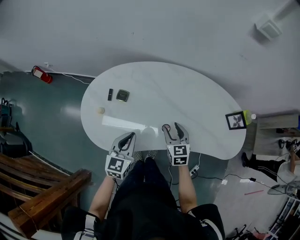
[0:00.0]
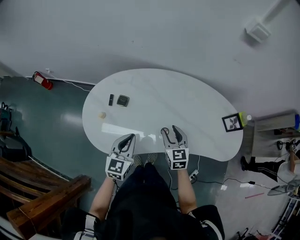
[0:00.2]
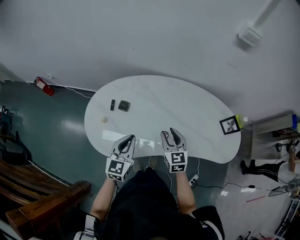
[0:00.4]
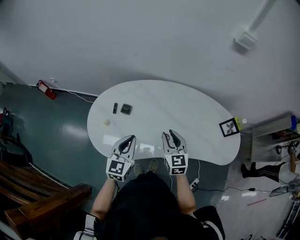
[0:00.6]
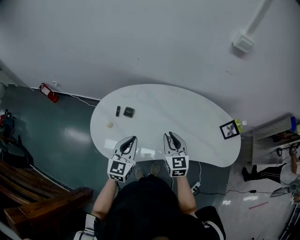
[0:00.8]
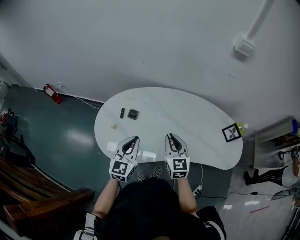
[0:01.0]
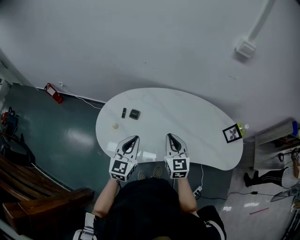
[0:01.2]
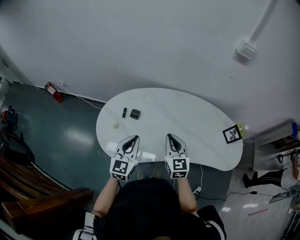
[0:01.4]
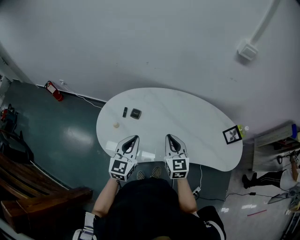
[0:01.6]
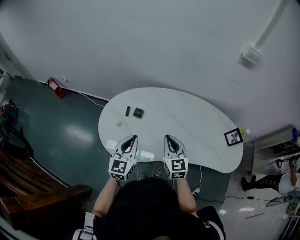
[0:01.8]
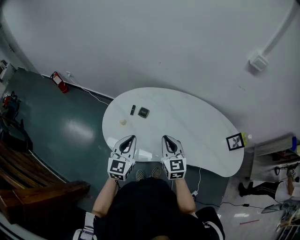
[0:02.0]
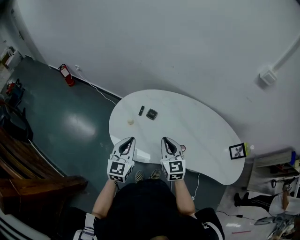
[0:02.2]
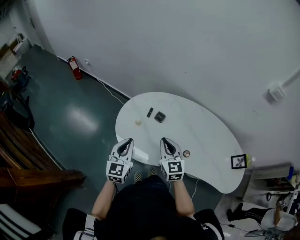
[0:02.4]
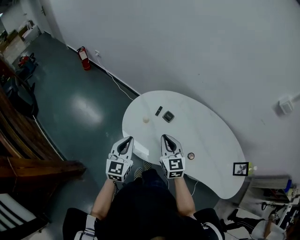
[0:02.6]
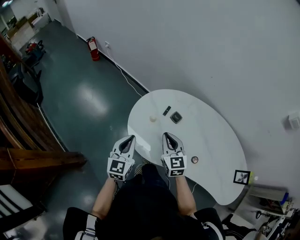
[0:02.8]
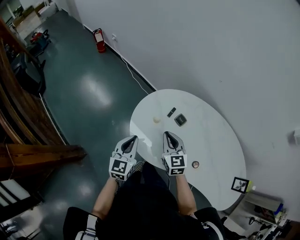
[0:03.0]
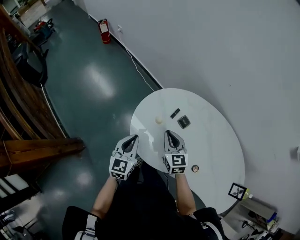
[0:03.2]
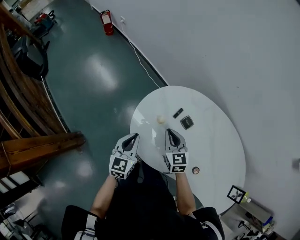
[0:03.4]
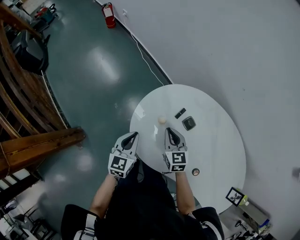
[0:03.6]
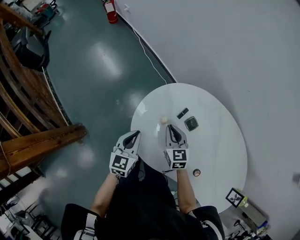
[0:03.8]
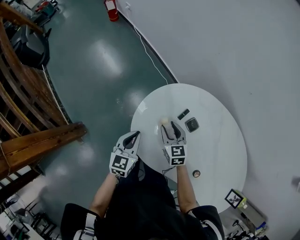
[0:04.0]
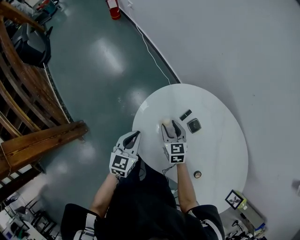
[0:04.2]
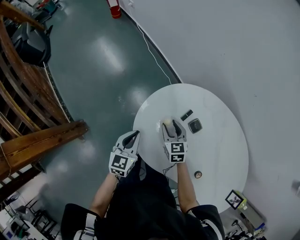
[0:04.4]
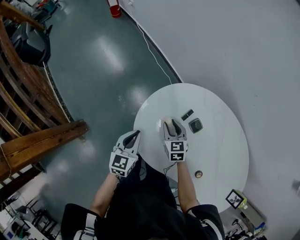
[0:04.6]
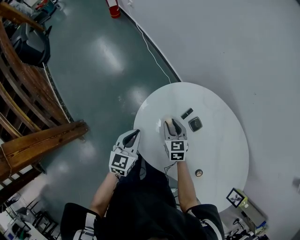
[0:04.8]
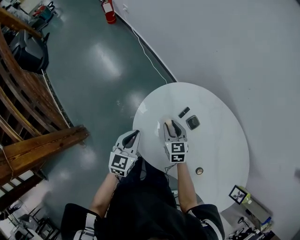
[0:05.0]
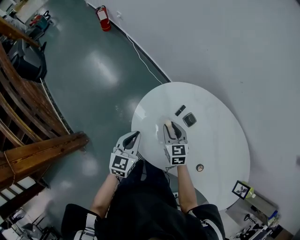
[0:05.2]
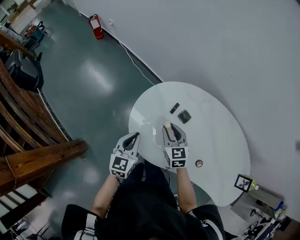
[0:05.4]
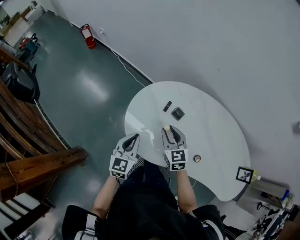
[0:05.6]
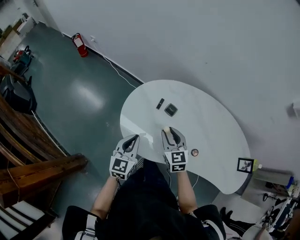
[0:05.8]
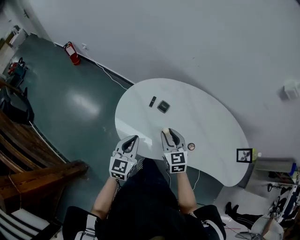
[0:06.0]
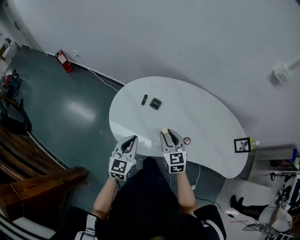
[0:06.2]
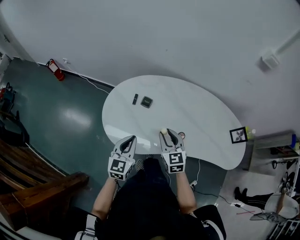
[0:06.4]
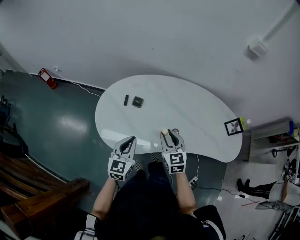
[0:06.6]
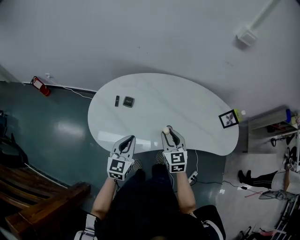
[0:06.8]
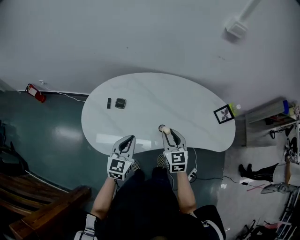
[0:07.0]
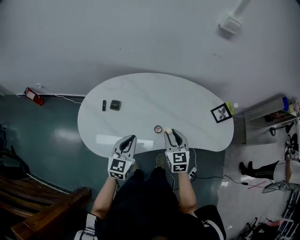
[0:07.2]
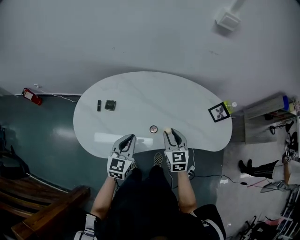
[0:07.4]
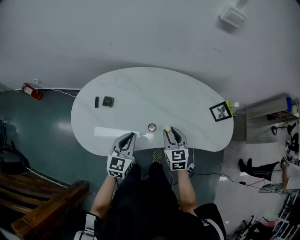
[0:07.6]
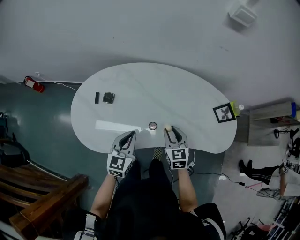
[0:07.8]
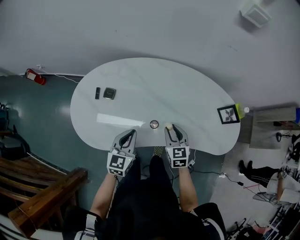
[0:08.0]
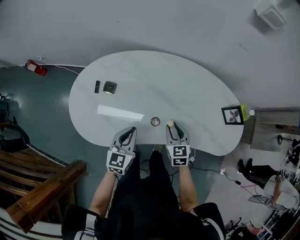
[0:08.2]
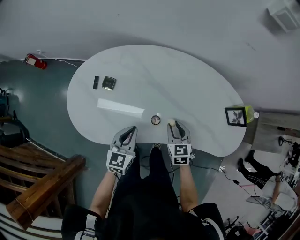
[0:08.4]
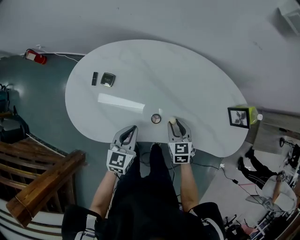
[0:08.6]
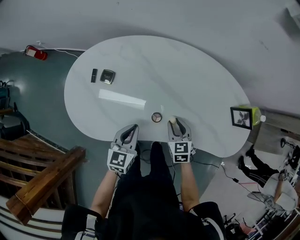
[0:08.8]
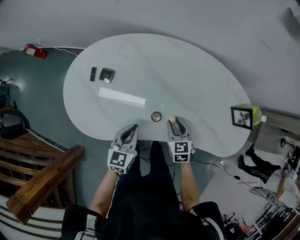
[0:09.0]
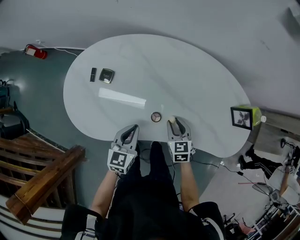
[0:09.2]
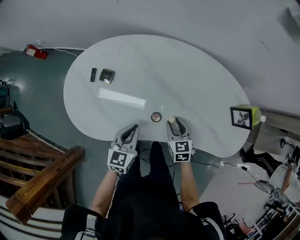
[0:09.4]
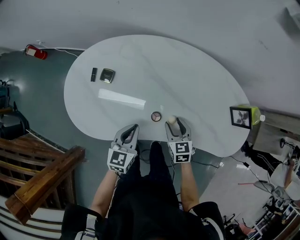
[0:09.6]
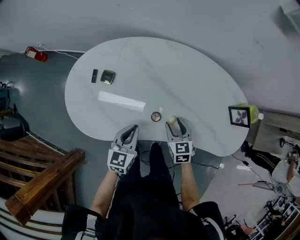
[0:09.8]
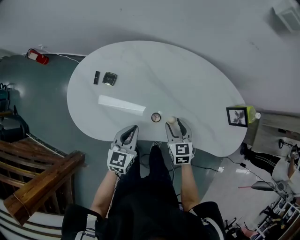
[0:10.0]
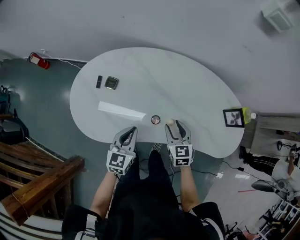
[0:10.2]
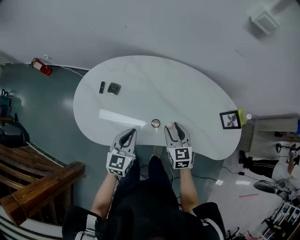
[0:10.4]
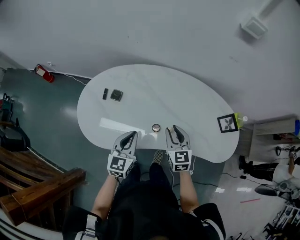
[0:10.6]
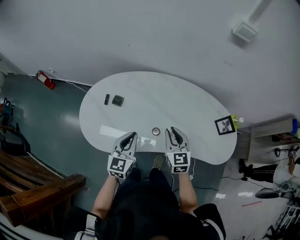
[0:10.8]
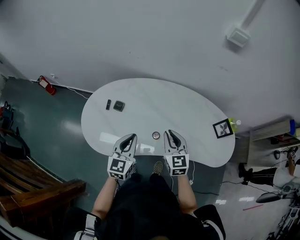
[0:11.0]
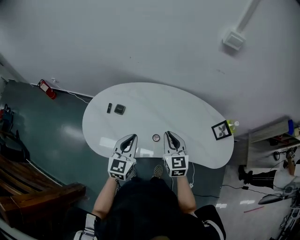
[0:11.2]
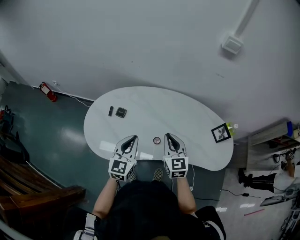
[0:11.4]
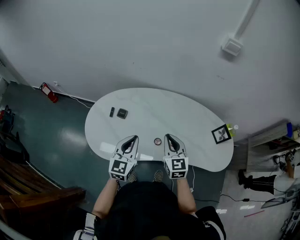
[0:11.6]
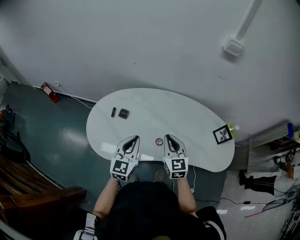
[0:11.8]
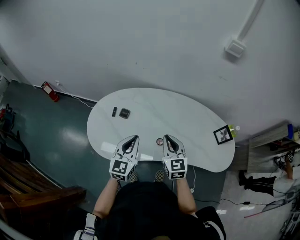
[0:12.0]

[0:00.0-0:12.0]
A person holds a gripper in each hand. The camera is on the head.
0:00.0 to 0:01.6: The left gripper heads upward, covering approximately 10 cm; the right gripper travels upward and to the left by approximately 15 cm, and closes.
0:01.6 to 0:03.0: The right gripper moves about 30 cm, and changes its angle by roughly 30 degrees; the left gripper moves some 25 cm, and turns by about 30 degrees.
0:03.0 to 0:04.4: The grippers both shift downward and forward by about 20 cm. The right gripper opens up.
0:04.4 to 0:06.0: Both grippers move upward, backward and to the right, some 25 cm. The right gripper turns by about 30 degrees. The left gripper rotates some 30 degrees.
0:06.0 to 0:07.6: The right gripper ends up about 30 cm from where it was, and turns by some 30 degrees, while the left gripper ends up about 25 cm from where it was, and changes its angle by approximately 20 degrees.
0:07.6 to 0:09.0: Both grippers move downward, some 15 cm.
0:09.0 to 0:10.4: The two grippers go about 10 cm upward.
0:10.4 to 0:12.0: The left gripper heads upward, covering roughly 10 cm, while the right gripper is displaced upward and to the left by some 15 cm, and closes up.

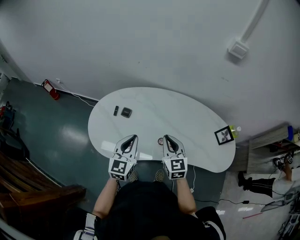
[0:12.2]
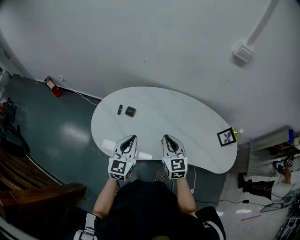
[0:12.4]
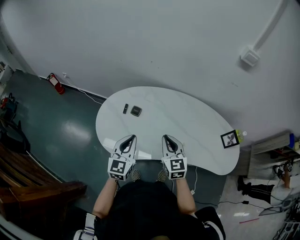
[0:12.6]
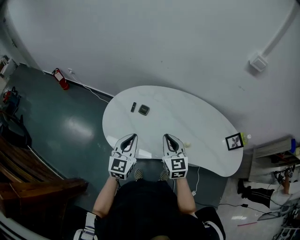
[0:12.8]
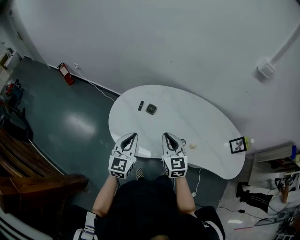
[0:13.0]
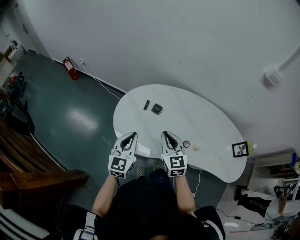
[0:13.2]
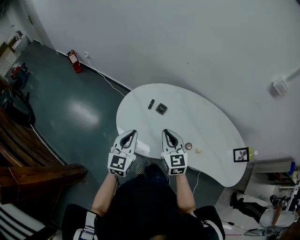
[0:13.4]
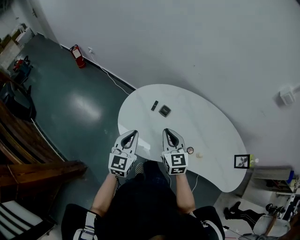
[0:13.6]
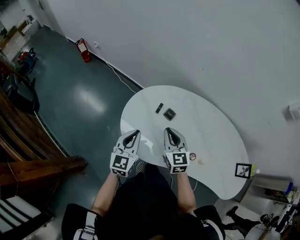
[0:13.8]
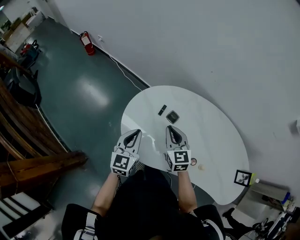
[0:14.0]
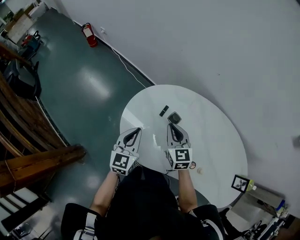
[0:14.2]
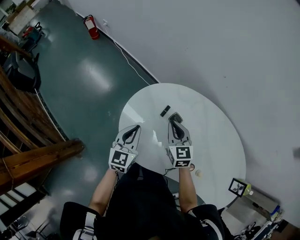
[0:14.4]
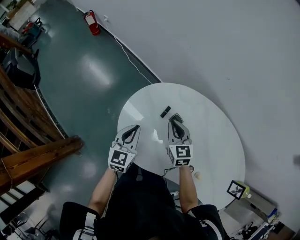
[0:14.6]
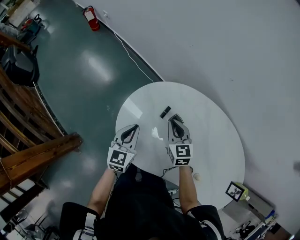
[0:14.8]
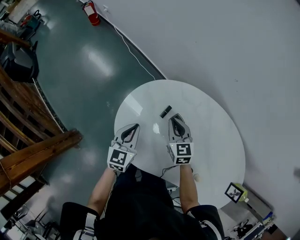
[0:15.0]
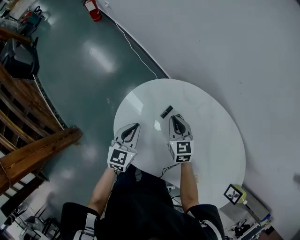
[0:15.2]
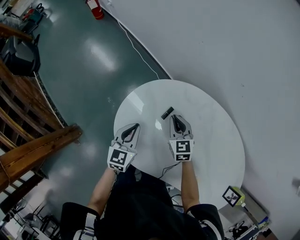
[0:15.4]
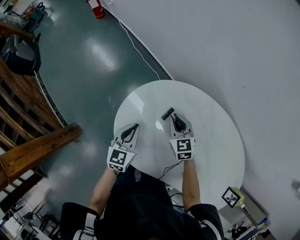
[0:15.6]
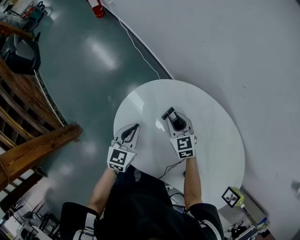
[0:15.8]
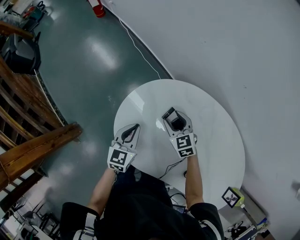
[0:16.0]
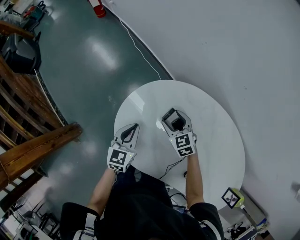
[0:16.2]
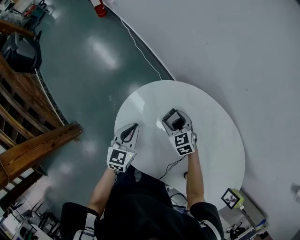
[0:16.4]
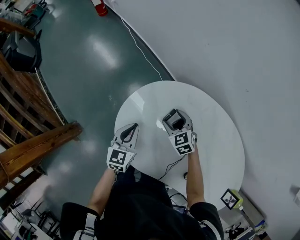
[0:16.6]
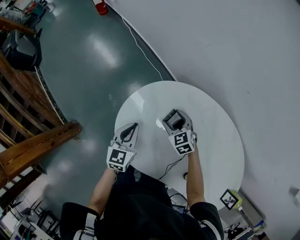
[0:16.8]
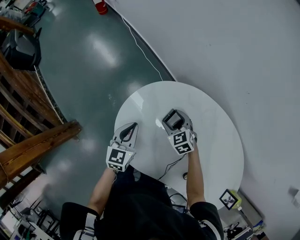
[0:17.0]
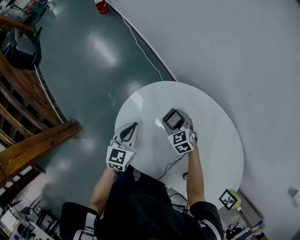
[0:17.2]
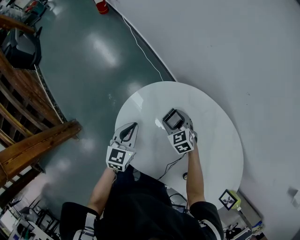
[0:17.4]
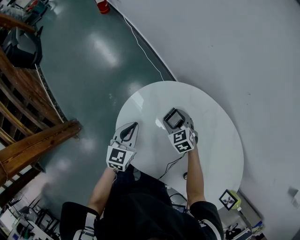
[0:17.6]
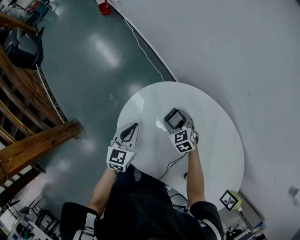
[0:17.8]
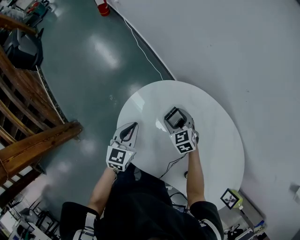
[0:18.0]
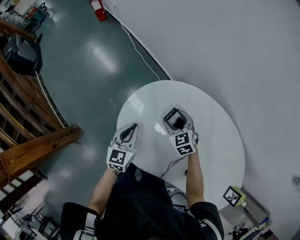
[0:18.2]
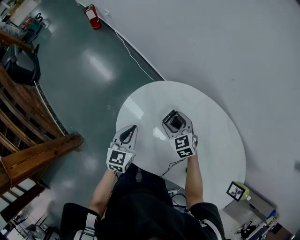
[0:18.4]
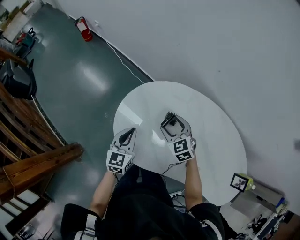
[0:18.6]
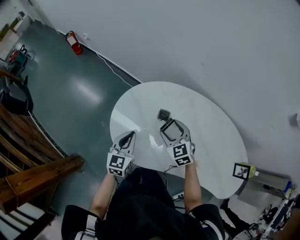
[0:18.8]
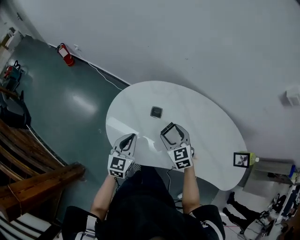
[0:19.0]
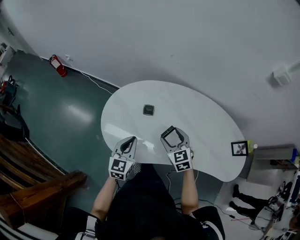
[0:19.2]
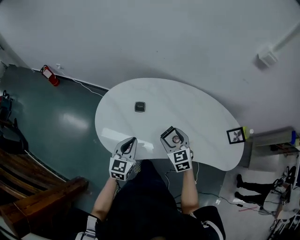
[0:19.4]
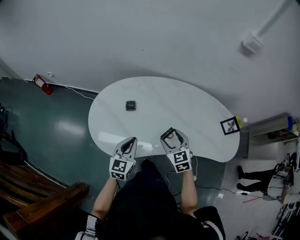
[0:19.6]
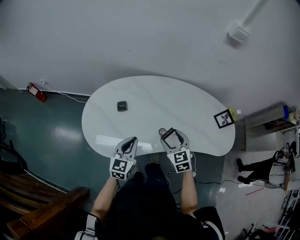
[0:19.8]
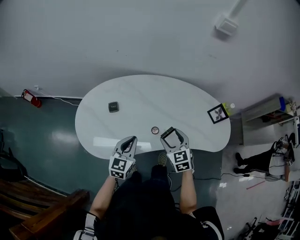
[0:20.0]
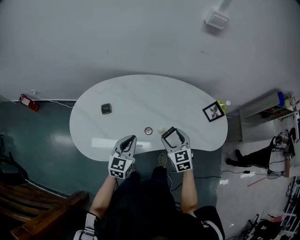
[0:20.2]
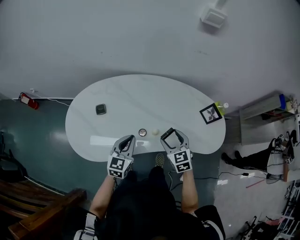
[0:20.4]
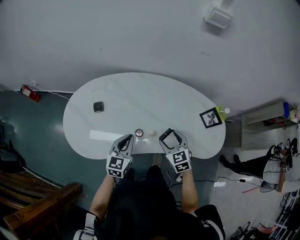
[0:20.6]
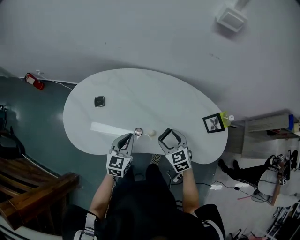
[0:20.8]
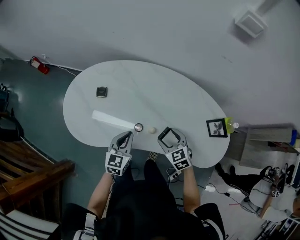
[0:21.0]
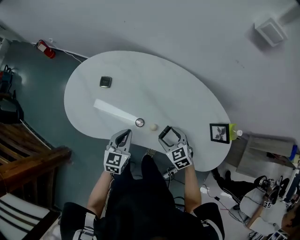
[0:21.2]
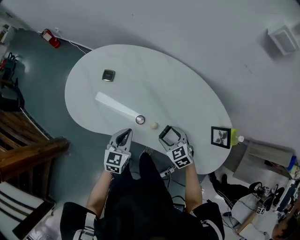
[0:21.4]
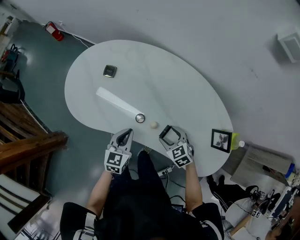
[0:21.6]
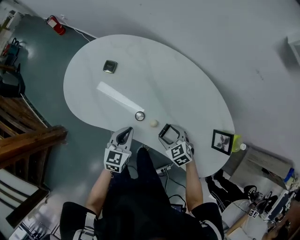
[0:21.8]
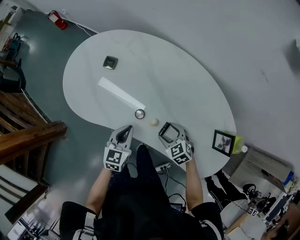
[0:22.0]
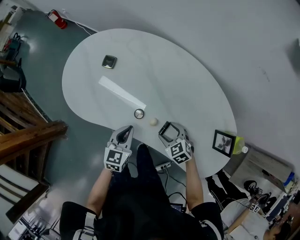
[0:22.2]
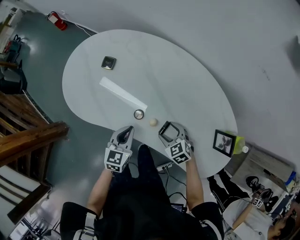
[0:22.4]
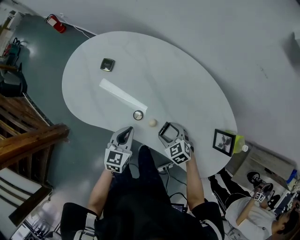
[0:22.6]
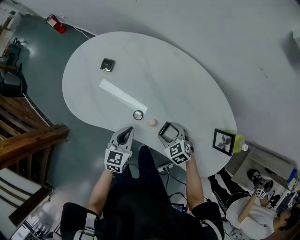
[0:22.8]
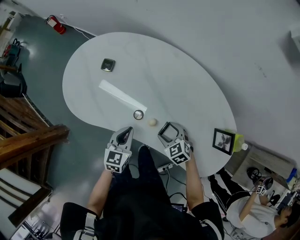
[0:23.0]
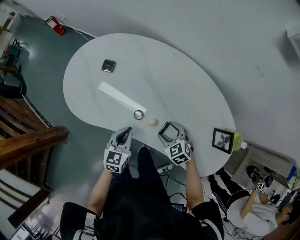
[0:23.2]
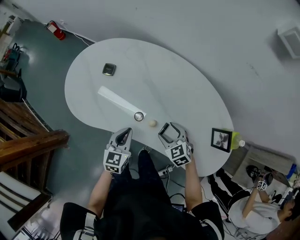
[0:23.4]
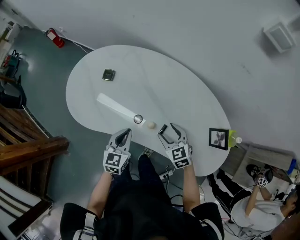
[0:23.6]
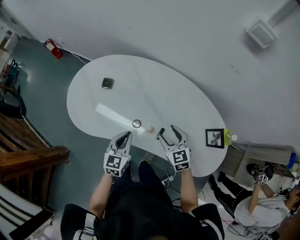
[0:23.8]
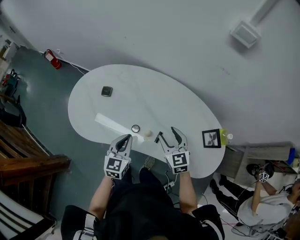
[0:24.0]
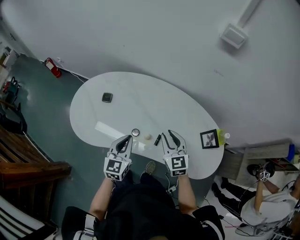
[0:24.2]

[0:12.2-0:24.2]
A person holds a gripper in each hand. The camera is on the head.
0:12.2 to 0:13.8: The left gripper is displaced to the left by about 25 cm. Meanwhile the right gripper moves to the left and forward, approximately 30 cm, and changes its angle by roughly 20 degrees.
0:13.8 to 0:15.2: The right gripper is displaced forward and downward by about 25 cm; the left gripper travels downward and forward by approximately 20 cm.
0:15.2 to 0:16.6: The right gripper goes some 5 cm downward, swivels approximately 30 degrees, and opens up.
0:16.6 to 0:18.2: The grippers make only small movements.
0:18.2 to 0:19.8: The right gripper ends up roughly 40 cm from where it was, and rotates approximately 50 degrees, while the left gripper shifts by some 35 cm, and rotates some 40 degrees.
0:19.8 to 0:21.2: The right gripper changes place by approximately 20 cm, and turns by about 30 degrees, while the left gripper moves approximately 20 cm.
0:21.2 to 0:22.6: The left gripper goes about 5 cm downward. Meanwhile the right gripper heads downward, covering roughly 10 cm.
0:22.6 to 0:24.2: The right gripper moves upward, roughly 25 cm, angles its fingers upward, by approximately 30 degrees, and closes its fingers. The left gripper goes roughly 15 cm upward.
